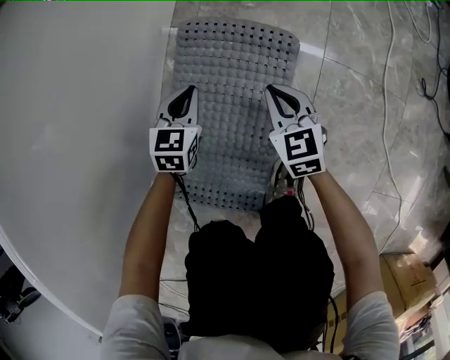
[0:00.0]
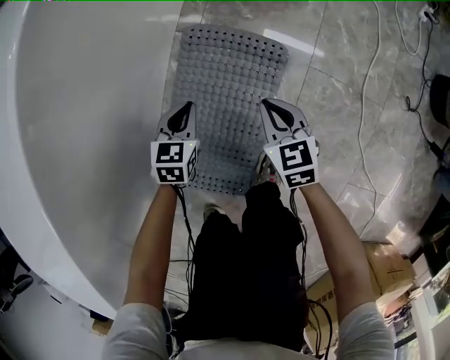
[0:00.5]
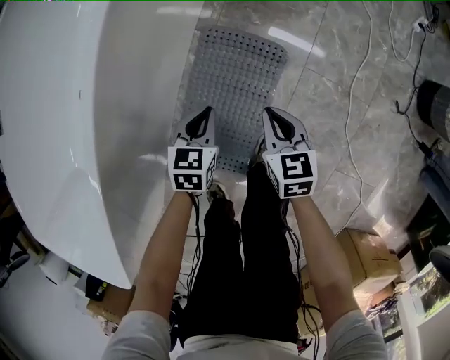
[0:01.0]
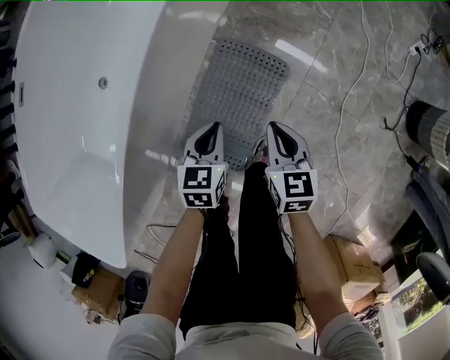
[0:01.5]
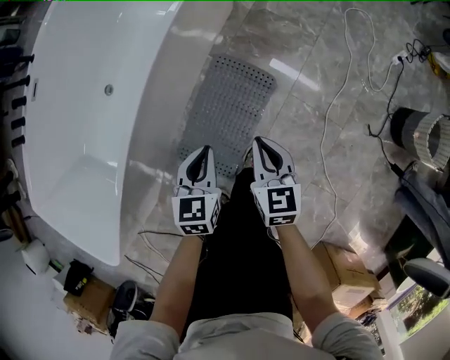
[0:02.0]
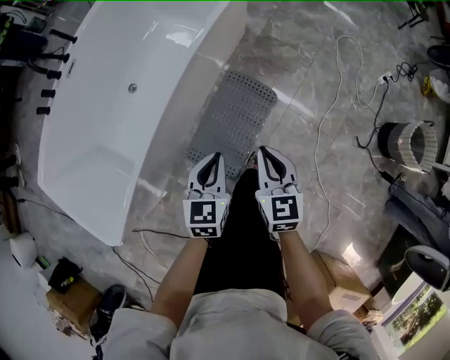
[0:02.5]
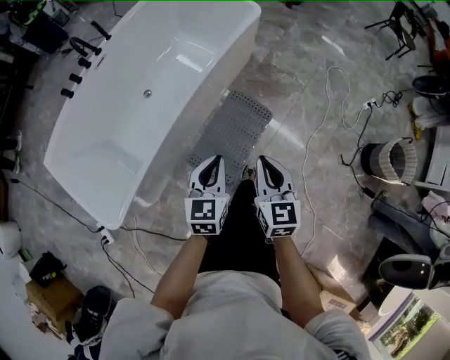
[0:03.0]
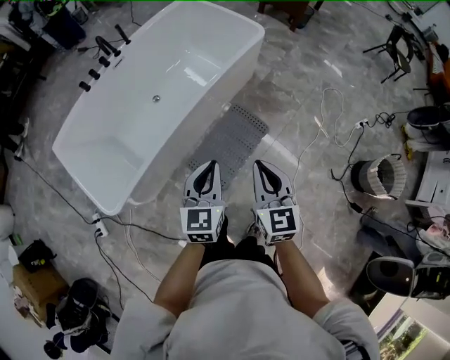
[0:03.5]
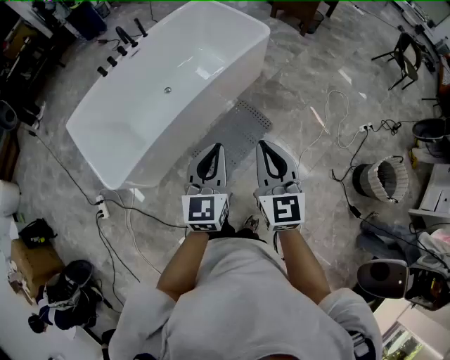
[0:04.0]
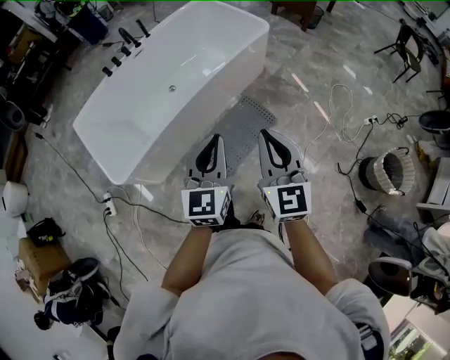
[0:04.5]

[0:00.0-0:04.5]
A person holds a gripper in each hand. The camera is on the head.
0:00.0 to 0:02.0: The two grippers go about 40 cm upward. The left gripper turns by about 20 degrees.
0:02.0 to 0:04.5: The two grippers go roughly 60 cm upward and backward. The left gripper tips its fingers upward by about 30 degrees. The right gripper tilts its fingers roughly 30 degrees upward.

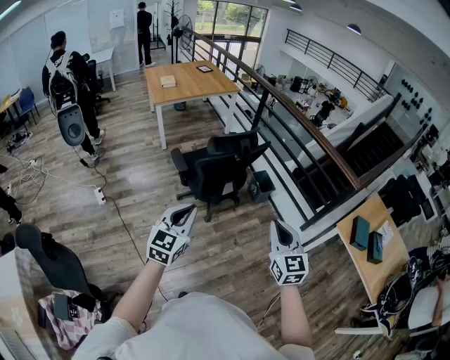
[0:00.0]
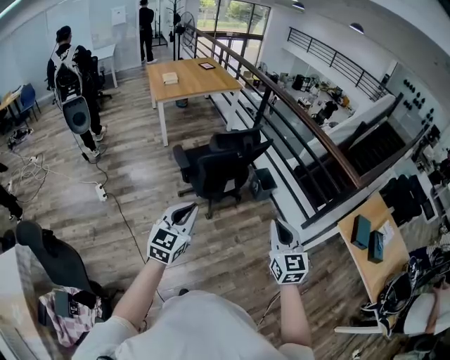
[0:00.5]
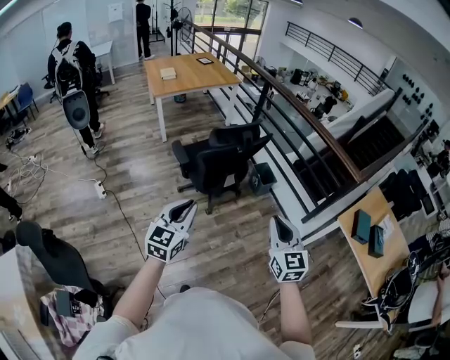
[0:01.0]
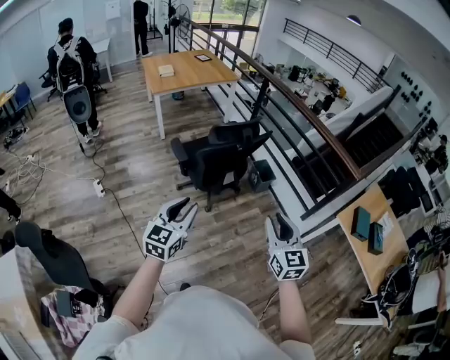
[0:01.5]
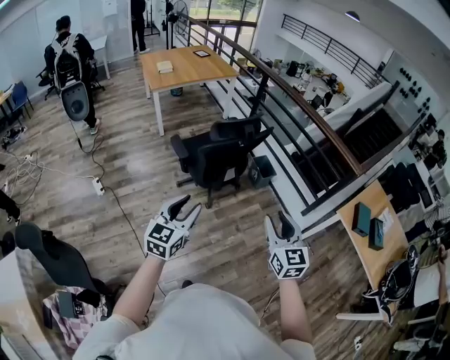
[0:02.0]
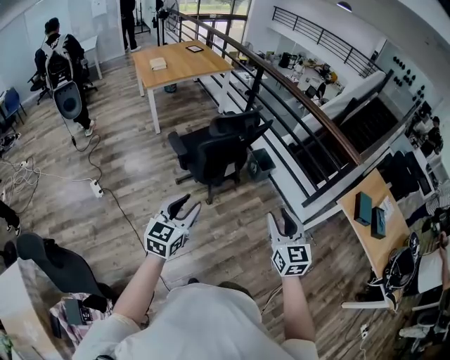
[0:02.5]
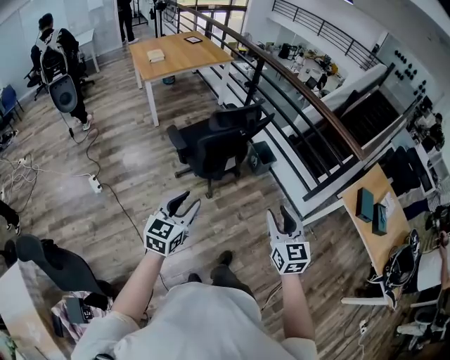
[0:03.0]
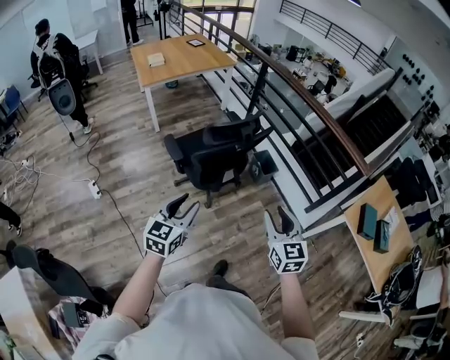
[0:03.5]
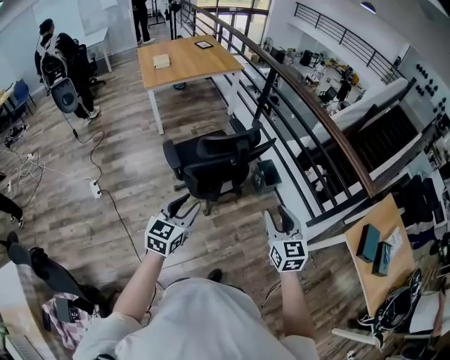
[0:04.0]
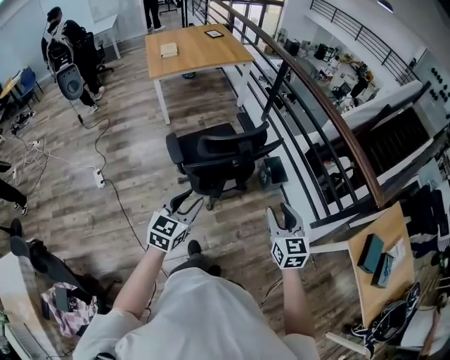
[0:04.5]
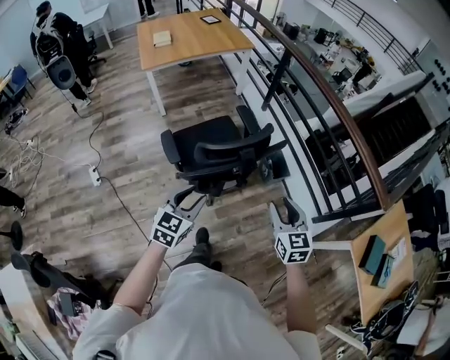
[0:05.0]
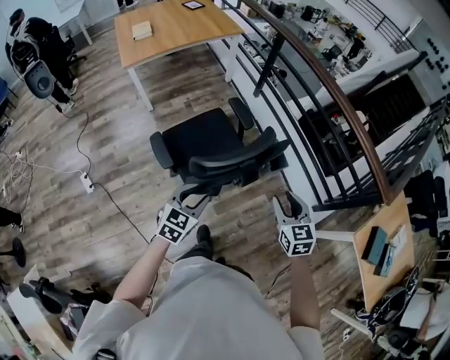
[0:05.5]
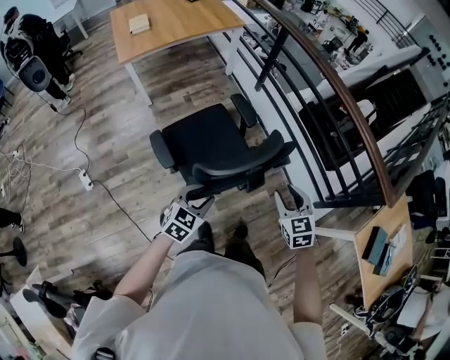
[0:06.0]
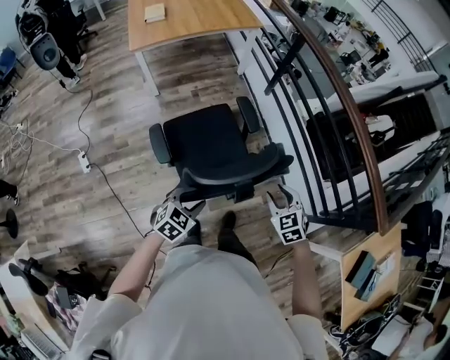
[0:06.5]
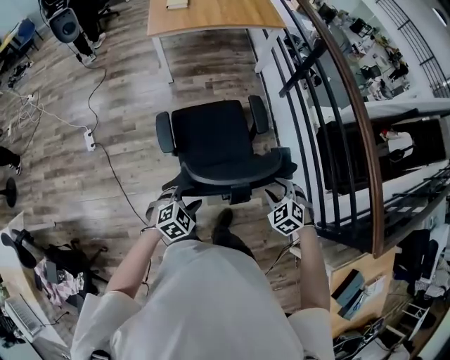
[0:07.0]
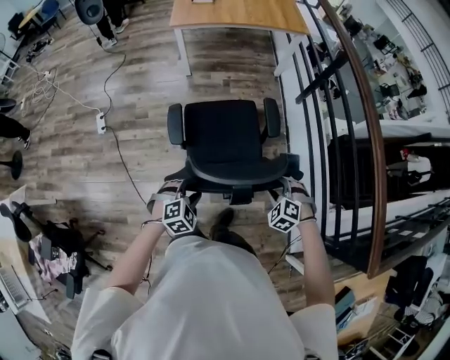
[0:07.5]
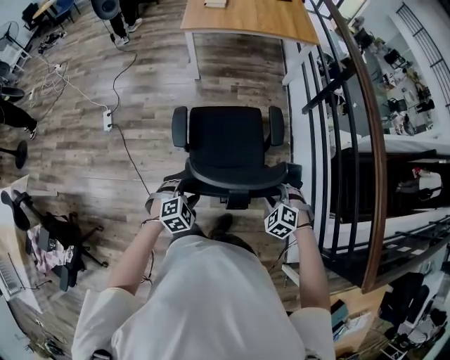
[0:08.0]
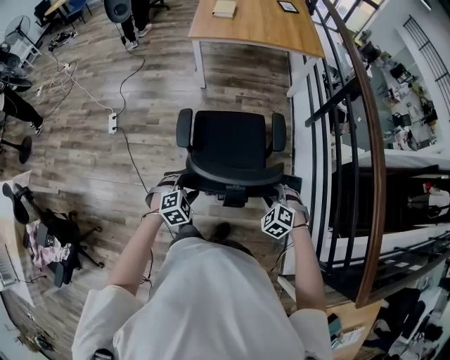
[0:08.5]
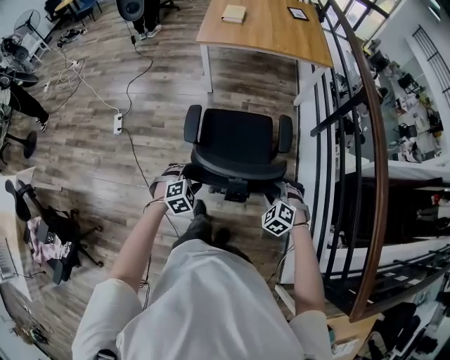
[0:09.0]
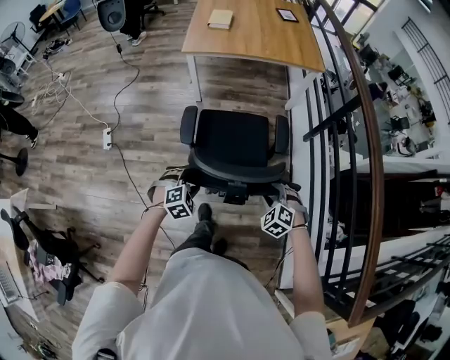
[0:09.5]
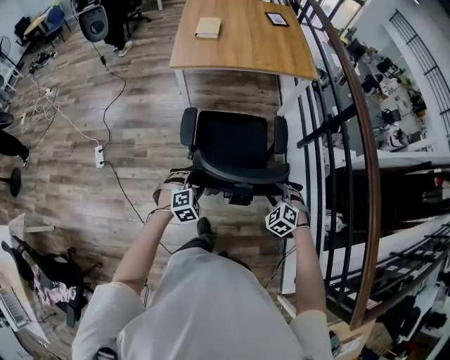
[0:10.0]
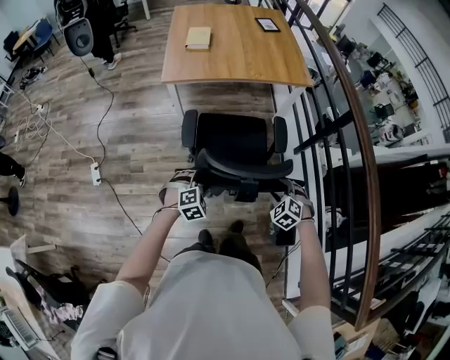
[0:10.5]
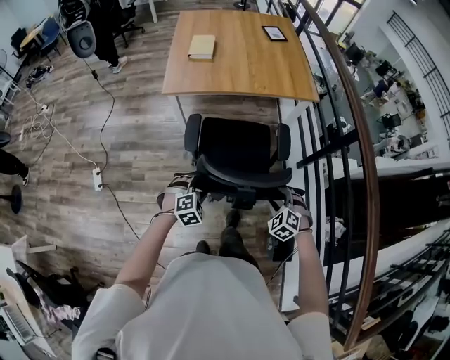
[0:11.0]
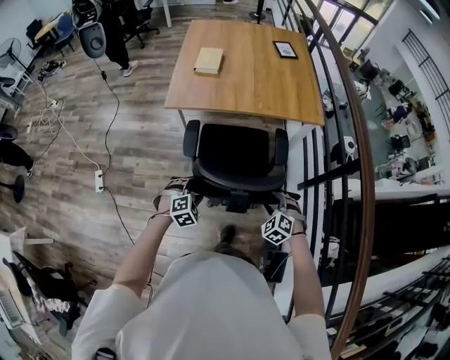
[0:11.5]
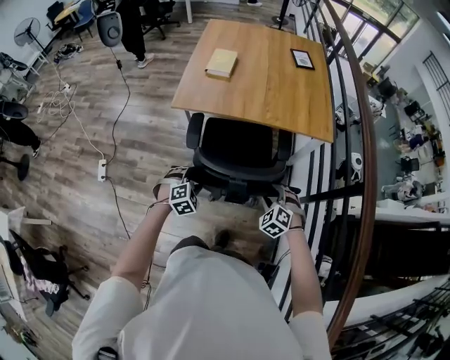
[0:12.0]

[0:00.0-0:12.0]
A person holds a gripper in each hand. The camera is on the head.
0:00.0 to 0:02.0: The left gripper opens, while the right gripper opens.
0:02.0 to 0:04.0: Both grippers travel together forward, roughly 20 cm.
0:04.0 to 0:06.0: The two grippers go approximately 30 cm forward and downward. The left gripper rotates about 30 degrees. The right gripper swivels some 20 degrees.
0:06.0 to 0:08.0: The right gripper travels downward by roughly 15 cm, and twists about 60 degrees counterclockwise, seen from behind, while the left gripper shifts some 10 cm downward, and changes its angle by some 30 degrees.
0:08.0 to 0:10.0: The two grippers go approximately 30 cm forward.
0:10.0 to 0:12.0: The grippers both shift forward by approximately 35 cm.

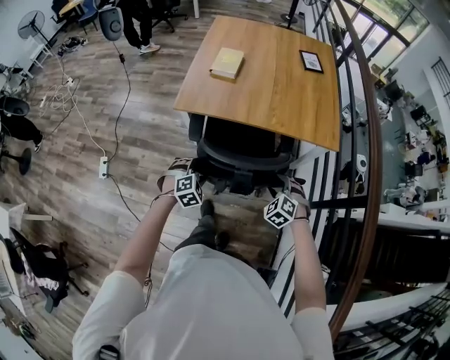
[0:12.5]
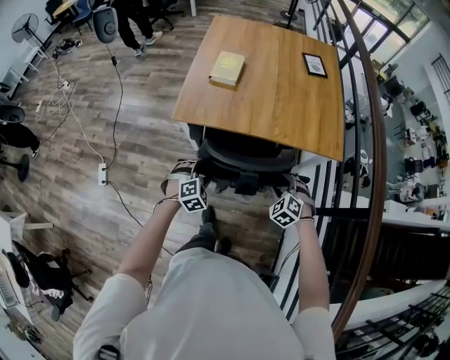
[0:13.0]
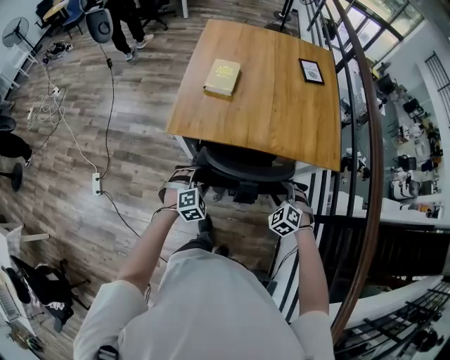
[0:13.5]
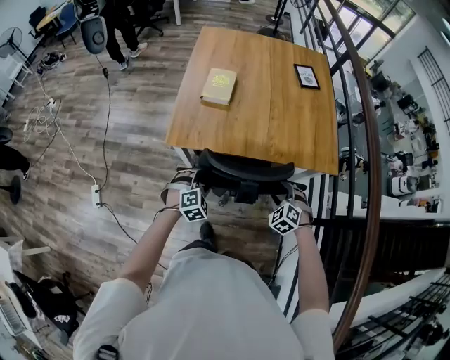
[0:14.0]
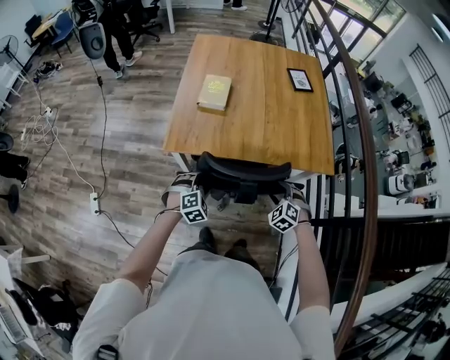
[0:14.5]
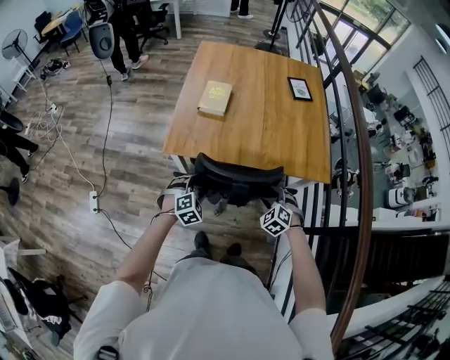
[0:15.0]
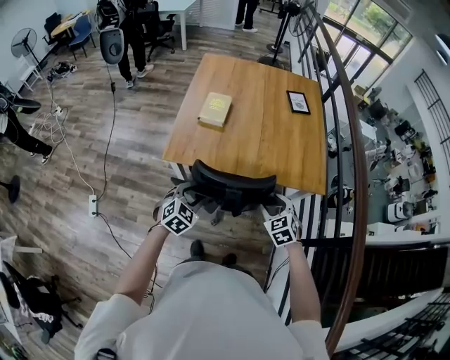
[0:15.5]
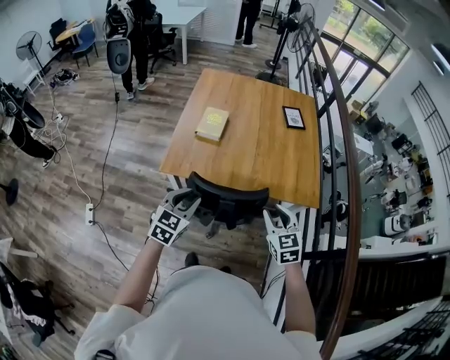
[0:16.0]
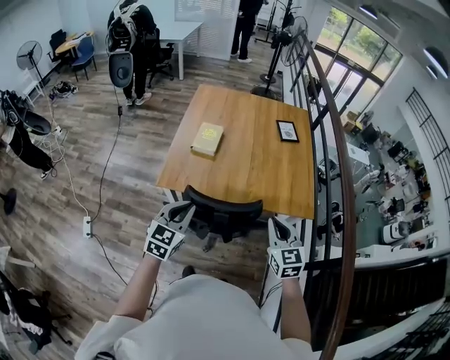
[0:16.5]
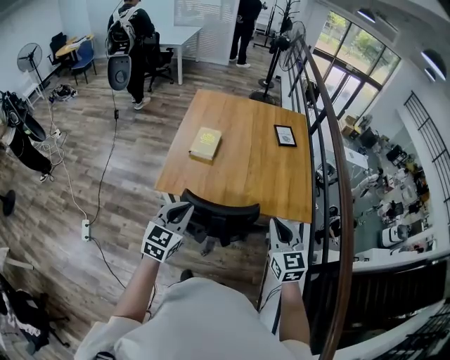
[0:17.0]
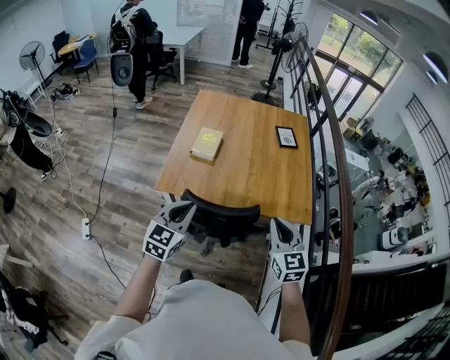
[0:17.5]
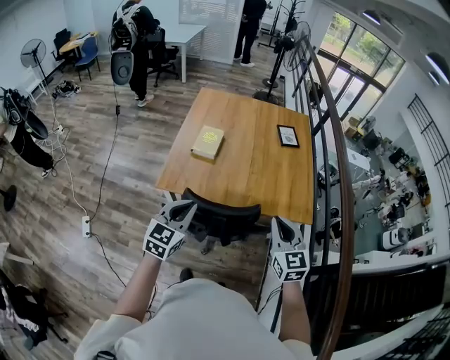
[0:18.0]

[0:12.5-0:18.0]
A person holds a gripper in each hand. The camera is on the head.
0:12.5 to 0:14.5: The grippers both shift forward by about 15 cm.
0:14.5 to 0:16.0: The grippers both shift upward by about 20 cm. The left gripper rotates around the line of its fingers by roughly 40 degrees, counterclockwise from behind, and closes up. The right gripper rotates roughly 40 degrees, and closes.
0:16.0 to 0:18.0: The grippers both shift upward by some 10 cm. The left gripper closes its fingers. Meanwhile the right gripper closes.

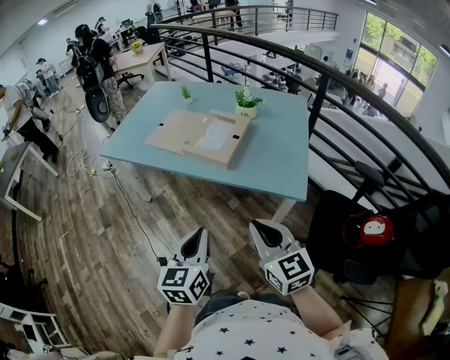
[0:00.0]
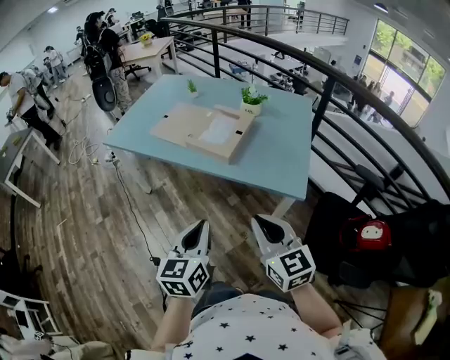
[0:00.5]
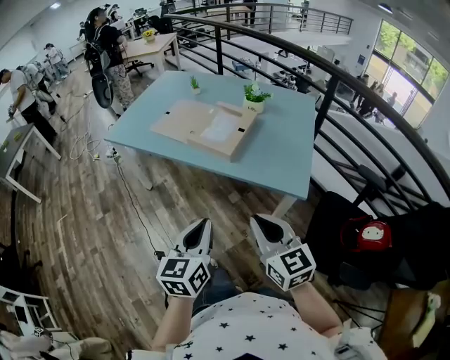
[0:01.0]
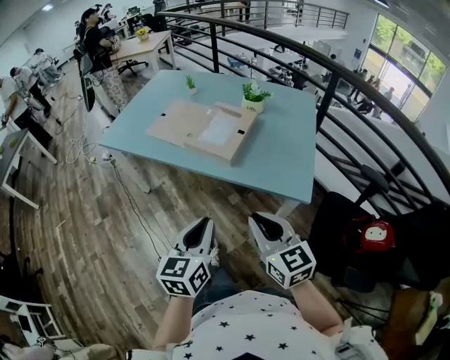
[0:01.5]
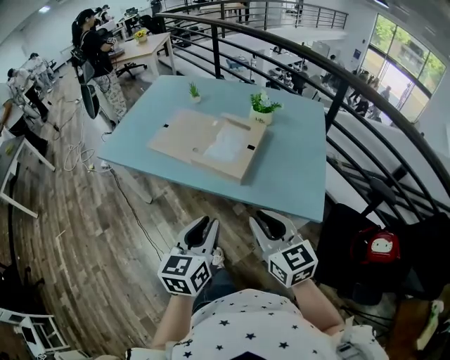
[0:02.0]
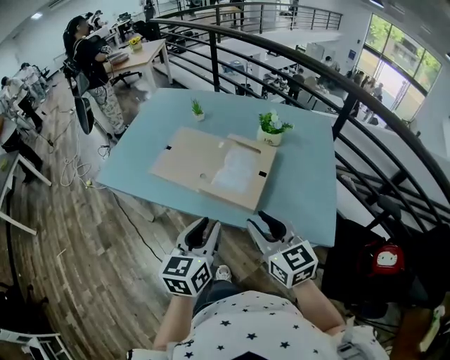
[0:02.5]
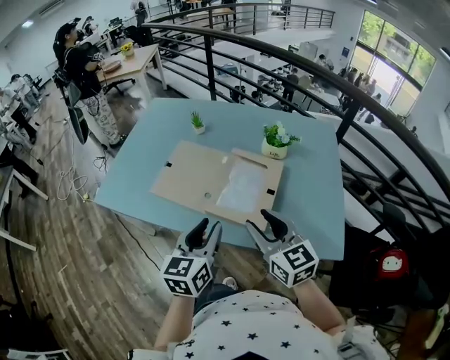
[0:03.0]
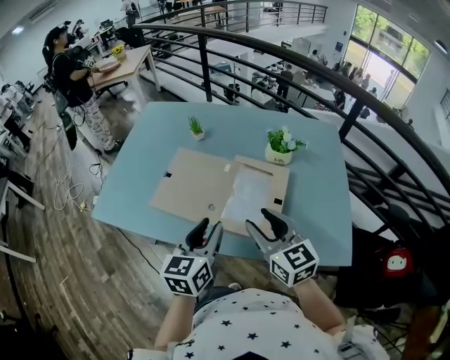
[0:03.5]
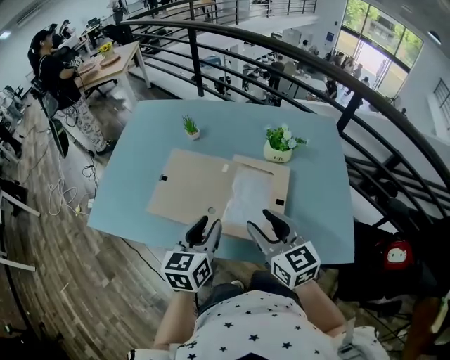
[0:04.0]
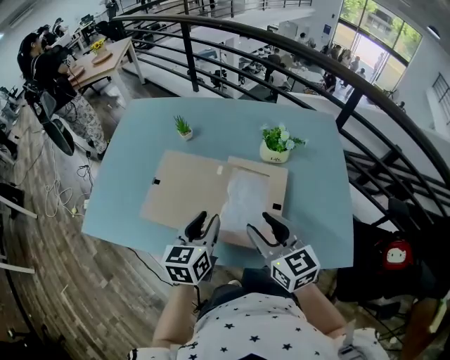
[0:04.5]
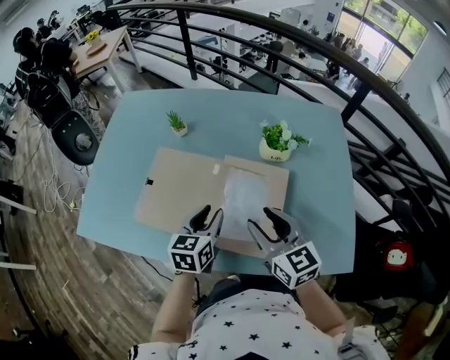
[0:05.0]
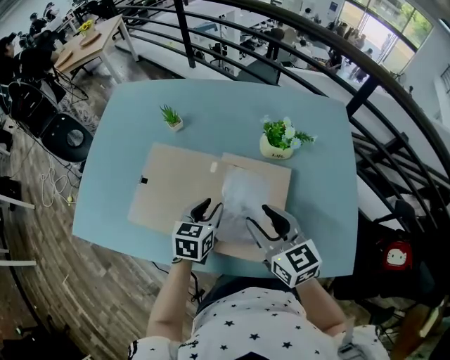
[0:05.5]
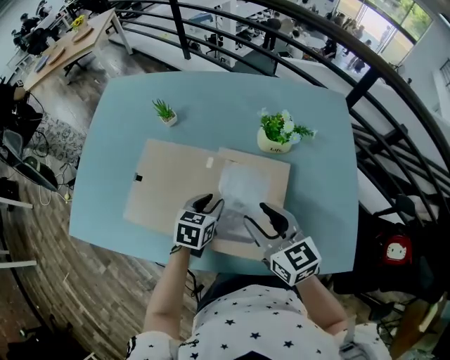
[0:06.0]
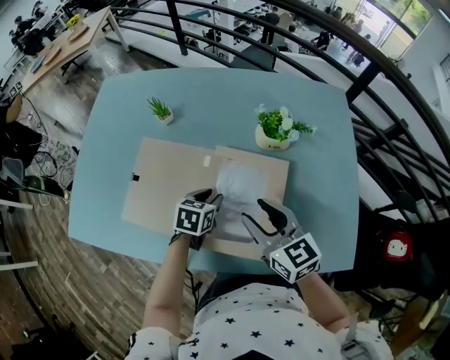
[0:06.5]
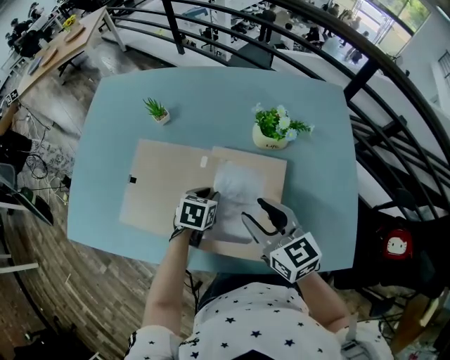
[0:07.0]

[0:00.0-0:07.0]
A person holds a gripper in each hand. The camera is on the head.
0:00.0 to 0:02.0: The two grippers go about 15 cm forward.
0:02.0 to 0:03.5: The grippers both shift forward by roughly 30 cm. The right gripper opens.
0:03.5 to 0:05.0: The right gripper shifts approximately 10 cm forward and downward, while the left gripper heads forward and downward, covering some 15 cm.
0:05.0 to 0:07.0: The left gripper heads downward and forward, covering approximately 15 cm, and changes its angle by approximately 30 degrees, while the right gripper moves some 5 cm.
